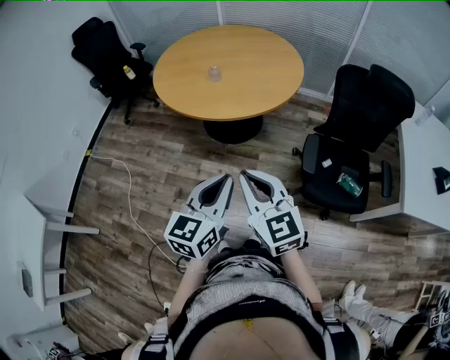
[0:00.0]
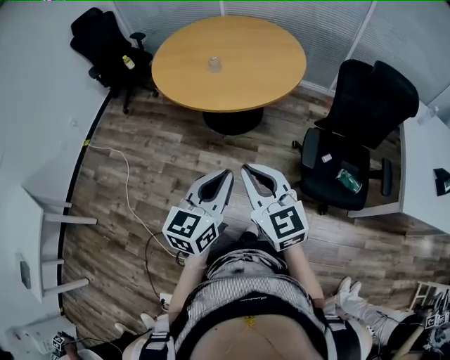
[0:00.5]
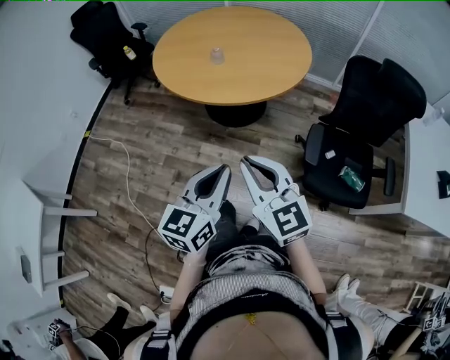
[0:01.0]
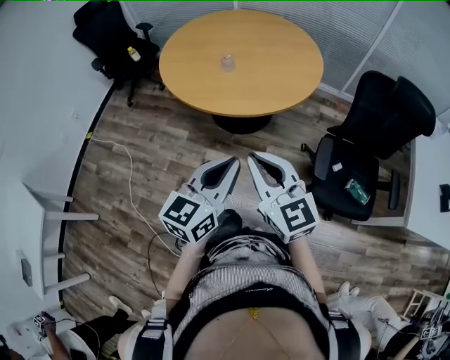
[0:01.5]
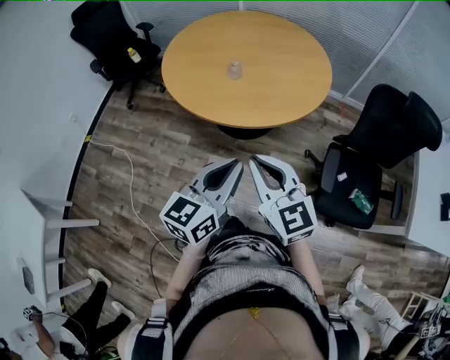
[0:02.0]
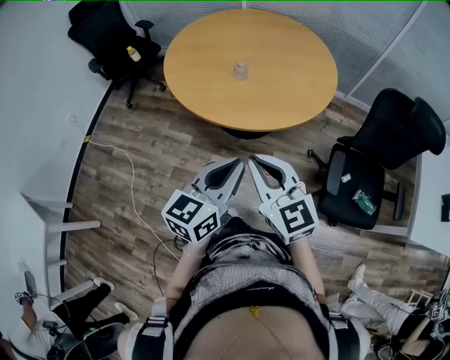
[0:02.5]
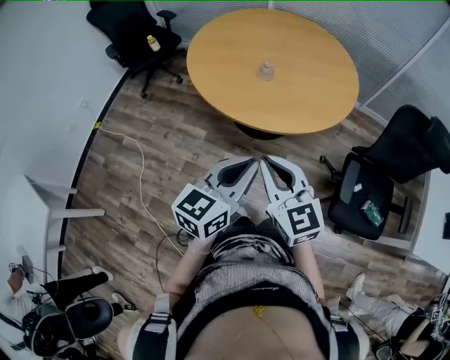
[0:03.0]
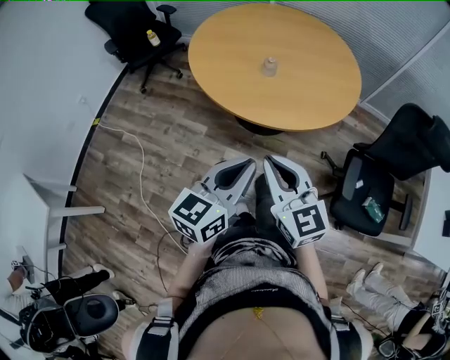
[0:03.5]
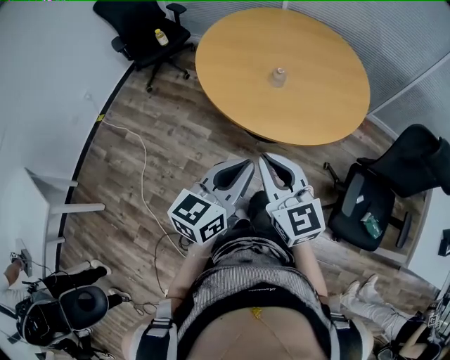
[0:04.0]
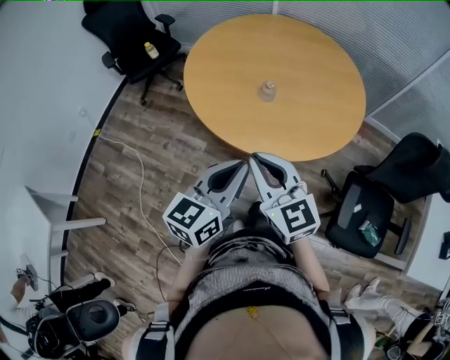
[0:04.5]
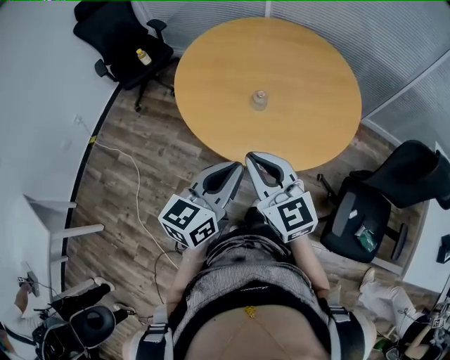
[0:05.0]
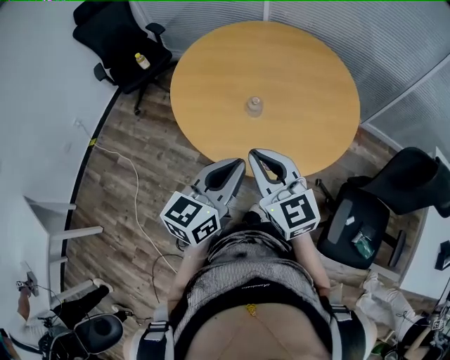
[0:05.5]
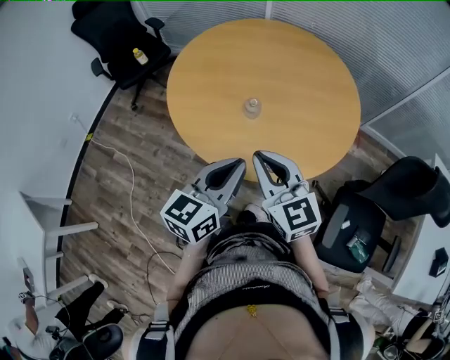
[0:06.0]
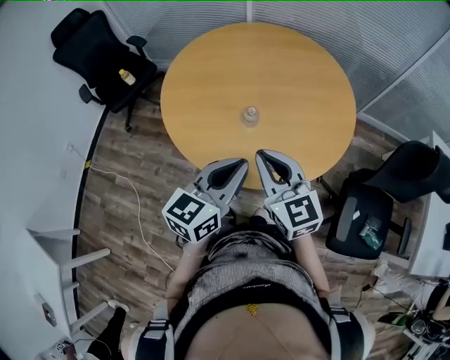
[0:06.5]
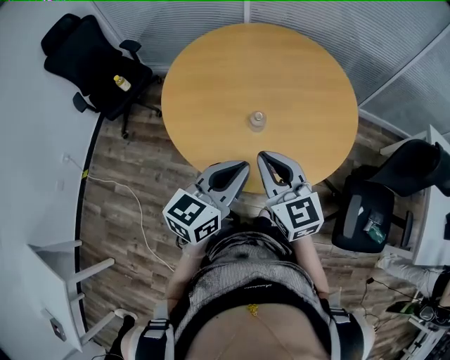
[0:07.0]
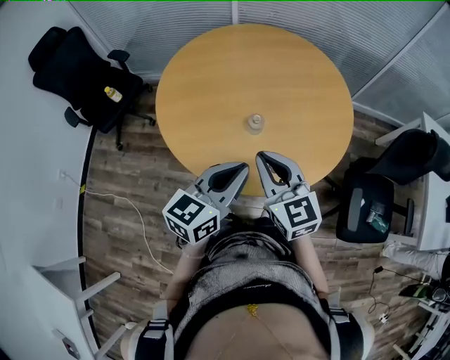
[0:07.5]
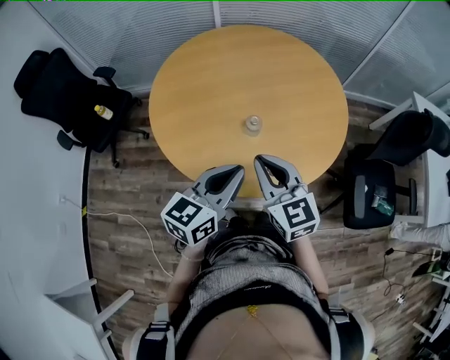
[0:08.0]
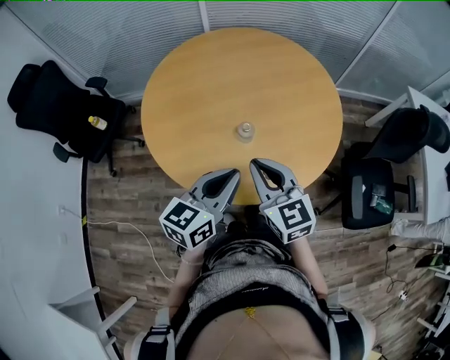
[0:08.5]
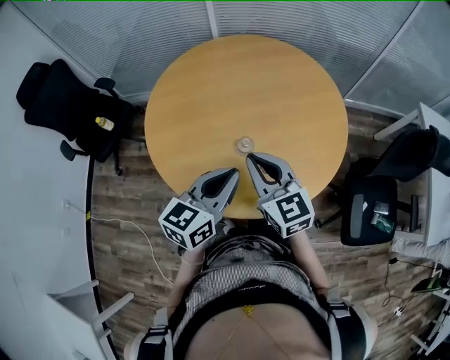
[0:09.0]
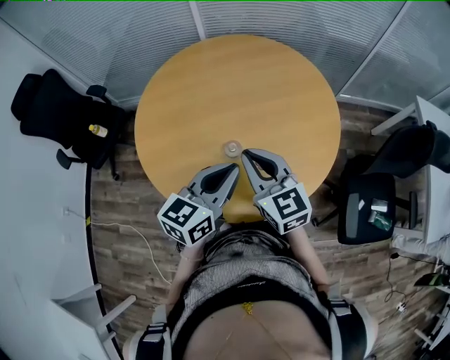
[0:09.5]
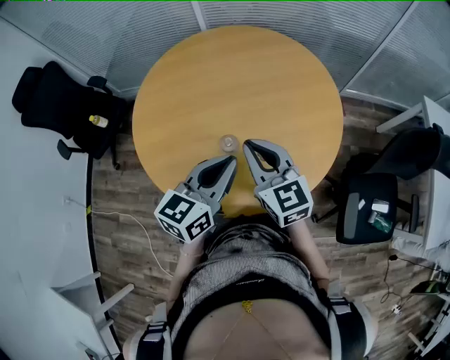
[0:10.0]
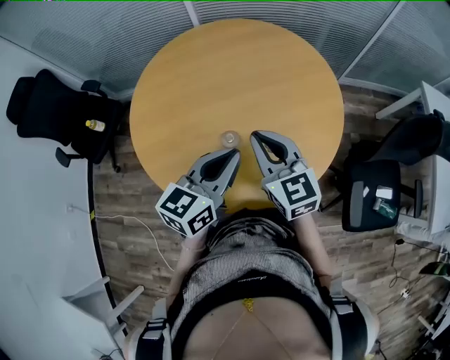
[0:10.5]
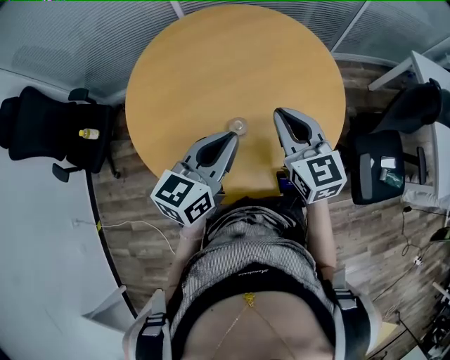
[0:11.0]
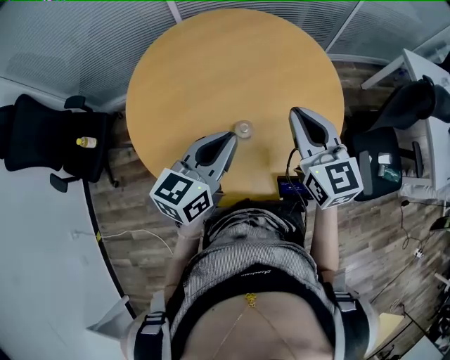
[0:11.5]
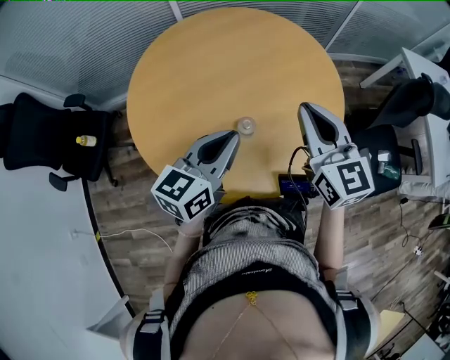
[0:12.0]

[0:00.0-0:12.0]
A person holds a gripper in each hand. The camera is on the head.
0:00.0 to 0:02.0: Both grippers move forward, approximately 15 cm.
0:02.0 to 0:04.0: The two grippers go about 15 cm to the left and forward.
0:04.0 to 0:06.0: Both grippers move forward and to the right, roughly 20 cm.
0:06.0 to 0:08.0: The right gripper changes place by about 15 cm, and changes its angle by roughly 20 degrees, while the left gripper ends up roughly 15 cm from where it was, and changes its angle by approximately 30 degrees.
0:08.0 to 0:10.0: The two grippers go roughly 15 cm forward and to the right.
0:10.0 to 0:12.0: The left gripper goes some 10 cm to the left, while the right gripper goes some 5 cm upward, and changes its angle by some 20 degrees.

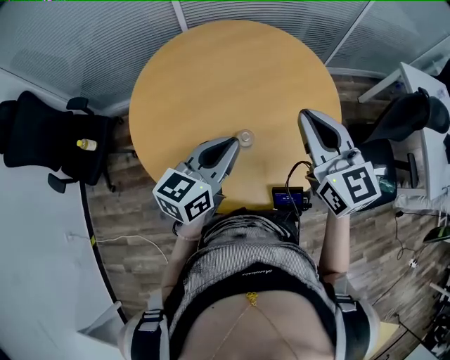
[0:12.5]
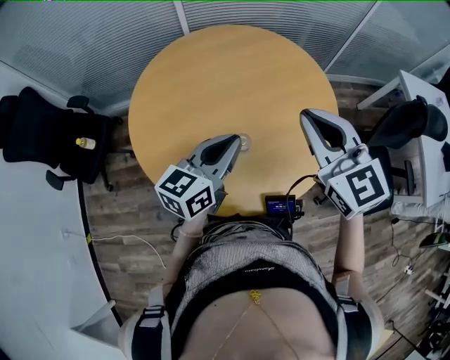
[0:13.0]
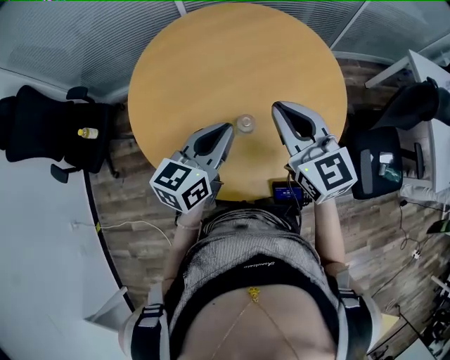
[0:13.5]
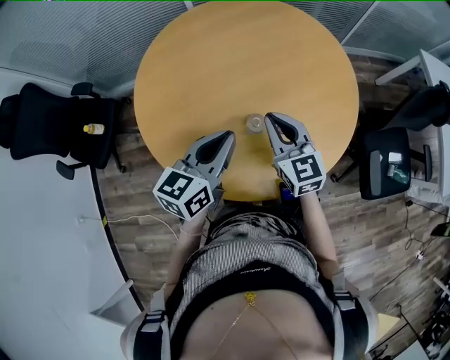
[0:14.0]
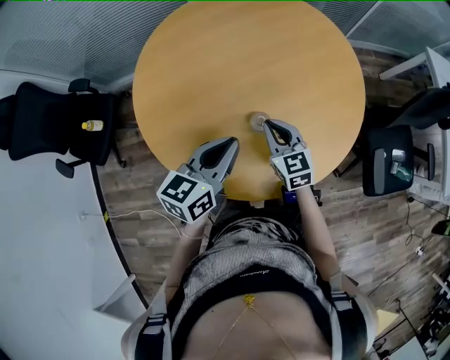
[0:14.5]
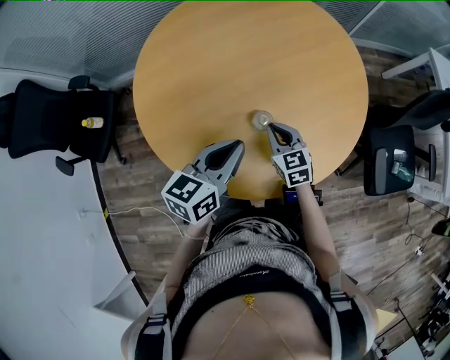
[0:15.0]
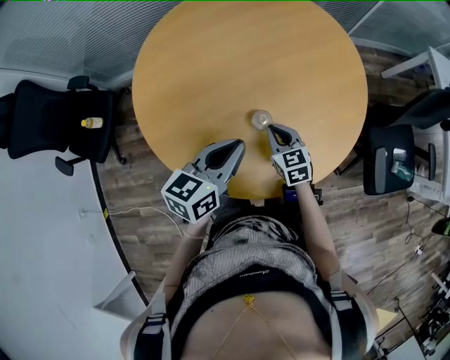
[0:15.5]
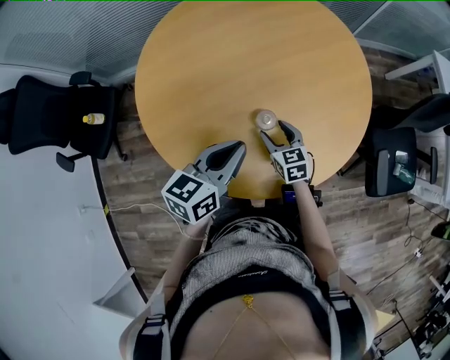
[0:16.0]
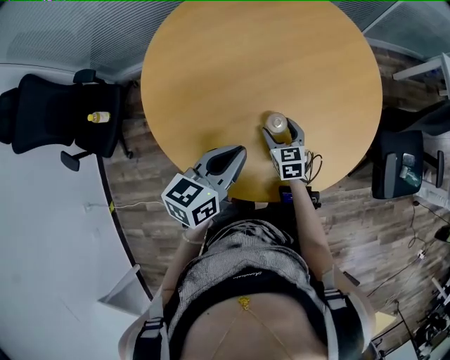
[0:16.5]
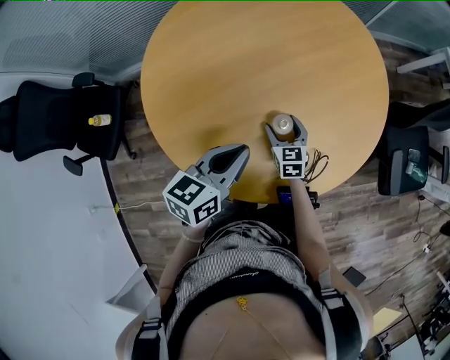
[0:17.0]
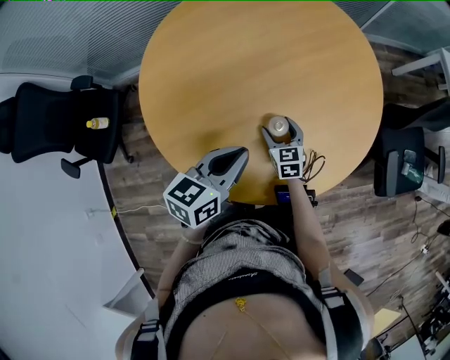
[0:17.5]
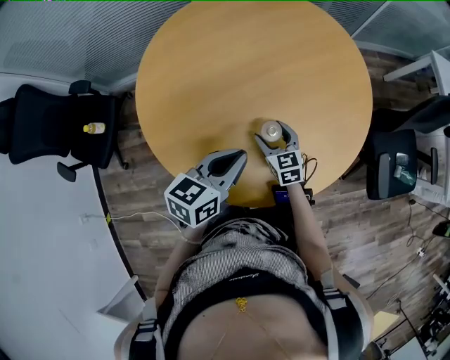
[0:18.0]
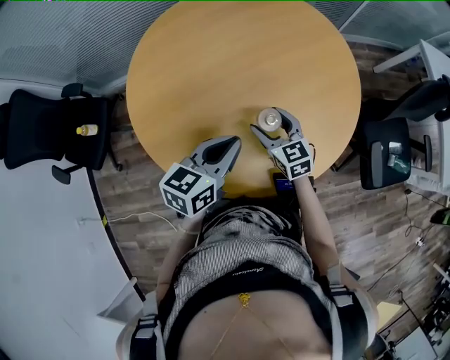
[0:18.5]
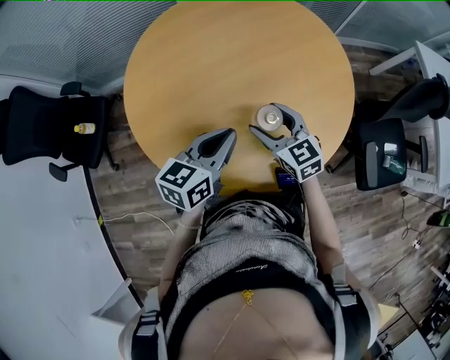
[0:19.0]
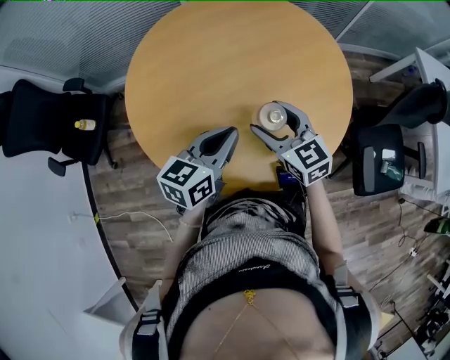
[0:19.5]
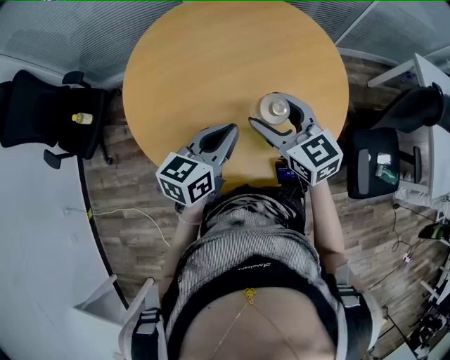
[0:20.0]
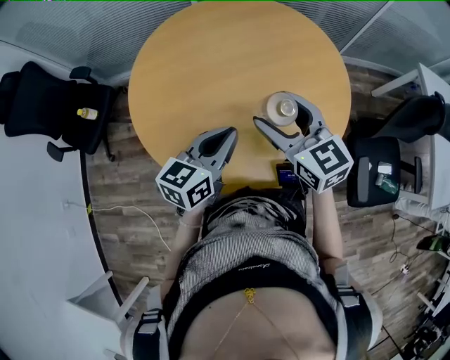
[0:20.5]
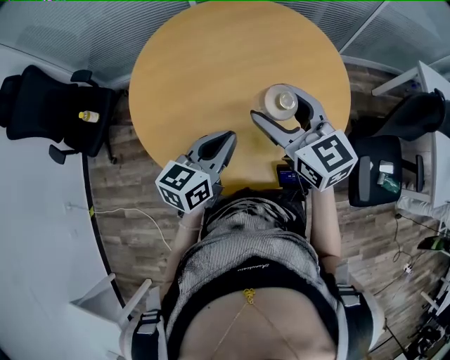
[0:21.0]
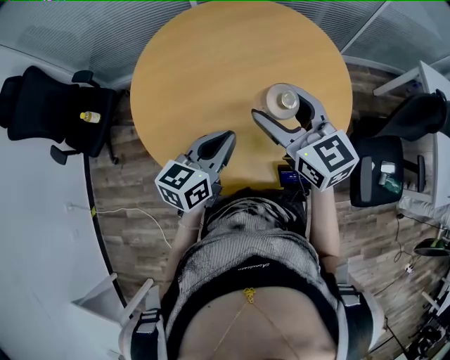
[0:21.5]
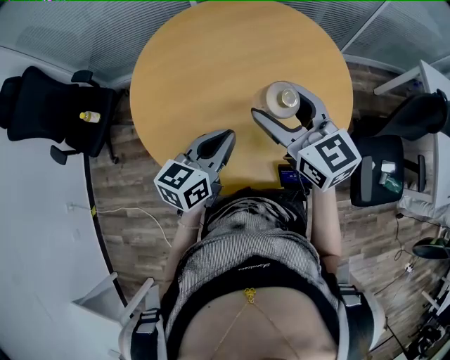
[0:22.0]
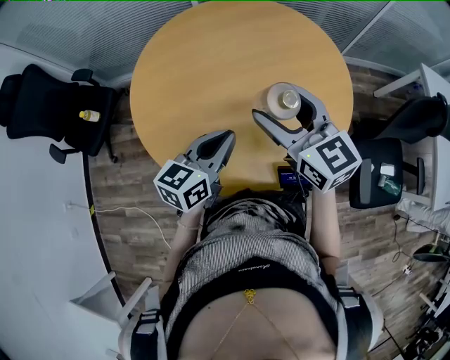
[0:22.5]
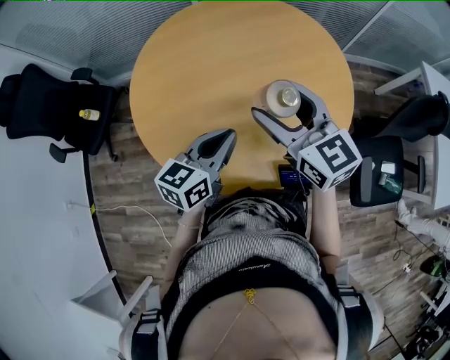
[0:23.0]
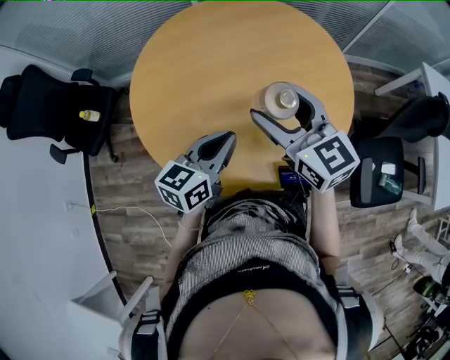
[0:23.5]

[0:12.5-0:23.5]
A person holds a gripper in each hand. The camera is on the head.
0:12.5 to 0:14.5: The right gripper heads downward, covering approximately 25 cm. Meanwhile the left gripper travels downward by roughly 5 cm.
0:14.5 to 0:16.0: The right gripper heads downward, covering about 10 cm, and opens up.
0:16.0 to 0:18.0: There are only small adjustments of the grippers.
0:18.0 to 0:20.0: The right gripper shifts roughly 25 cm upward, and rotates approximately 20 degrees. Meanwhile the left gripper shifts about 5 cm to the right.
0:20.0 to 0:21.5: The right gripper is displaced upward by some 5 cm.
0:21.5 to 0:23.5: The two grippers keep their place.

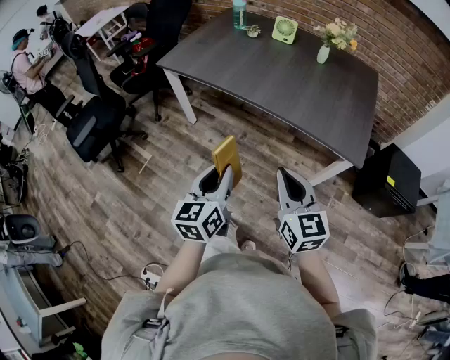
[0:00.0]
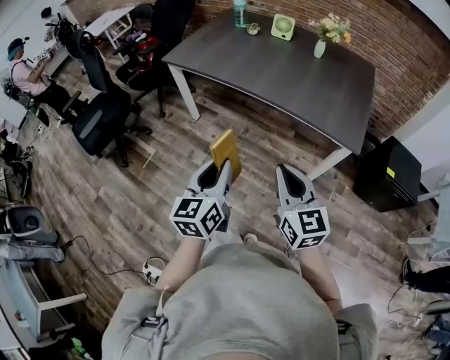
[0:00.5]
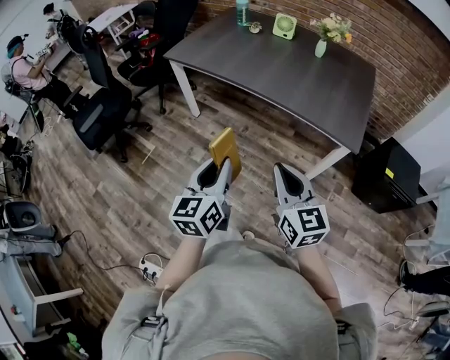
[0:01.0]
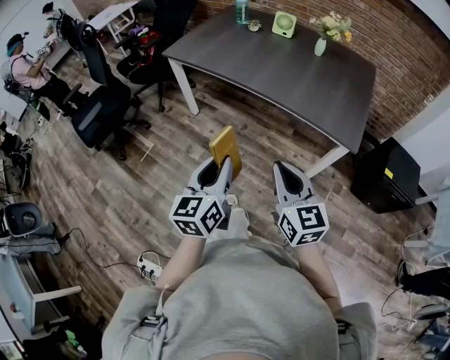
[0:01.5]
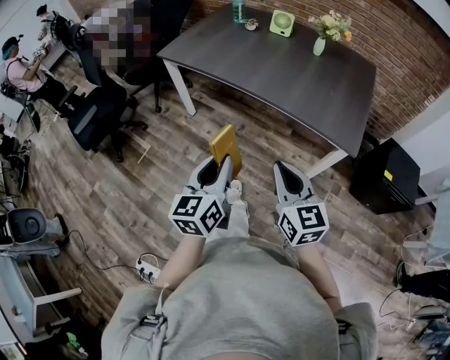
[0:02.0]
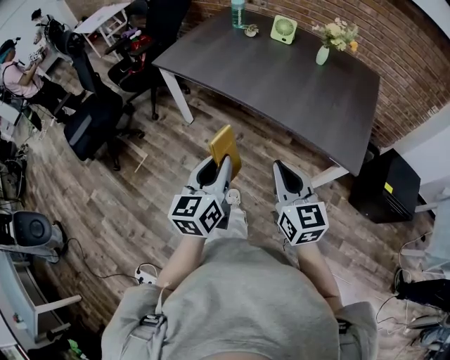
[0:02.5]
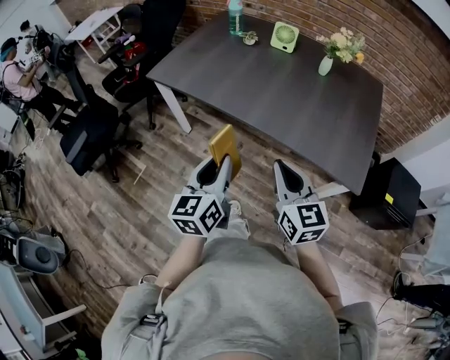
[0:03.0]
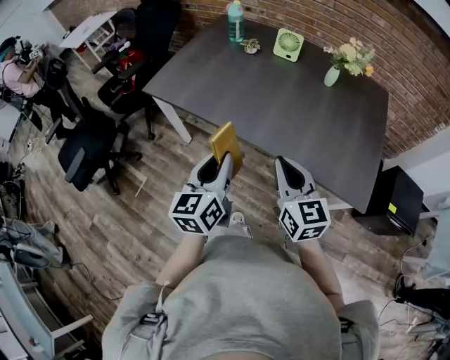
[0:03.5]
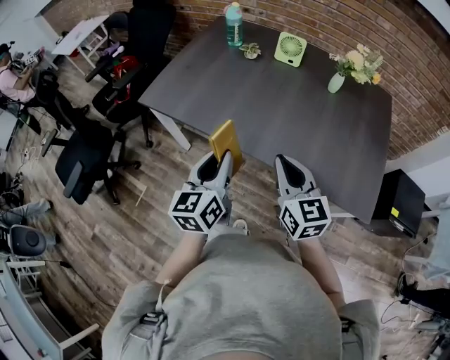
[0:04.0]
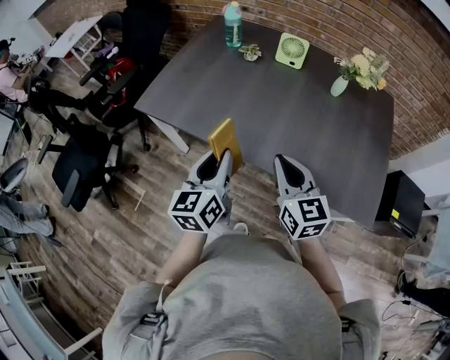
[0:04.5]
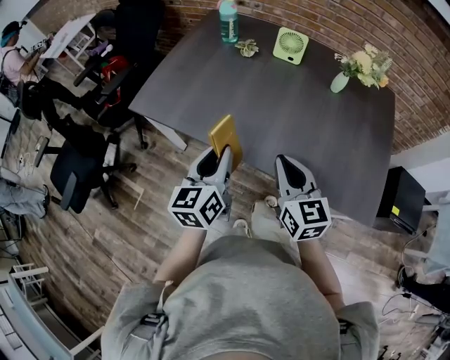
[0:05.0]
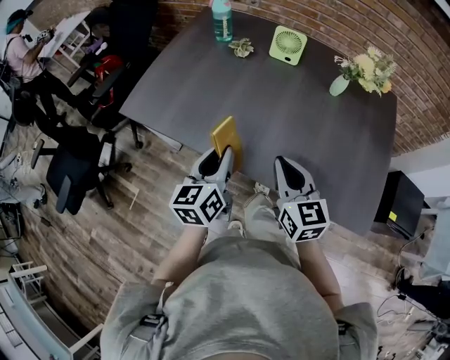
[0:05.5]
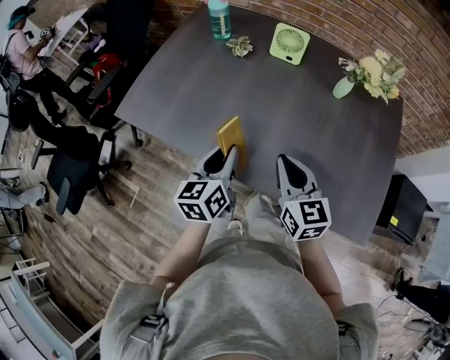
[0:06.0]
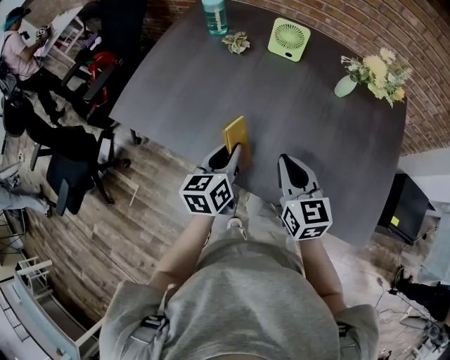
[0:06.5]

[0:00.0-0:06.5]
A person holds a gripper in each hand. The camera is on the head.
0:00.0 to 0:02.0: The left gripper changes place by roughly 5 cm.
0:02.0 to 0:04.5: Both grippers are carried forward, approximately 40 cm.
0:04.5 to 0:06.5: The left gripper is displaced forward, downward and to the right by roughly 20 cm, while the right gripper moves forward, to the right and downward, approximately 15 cm.
